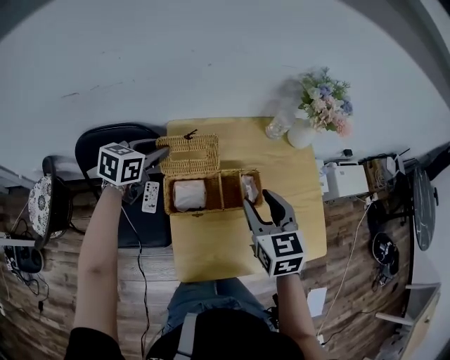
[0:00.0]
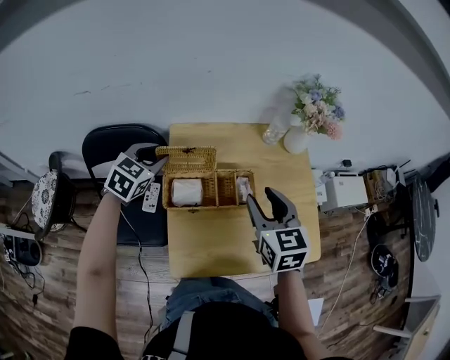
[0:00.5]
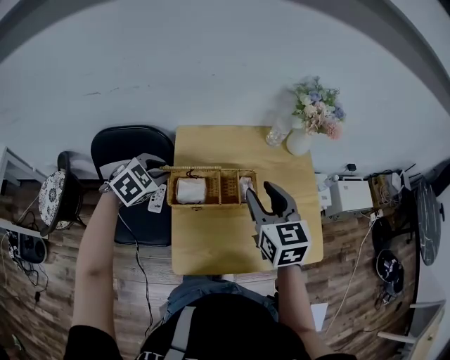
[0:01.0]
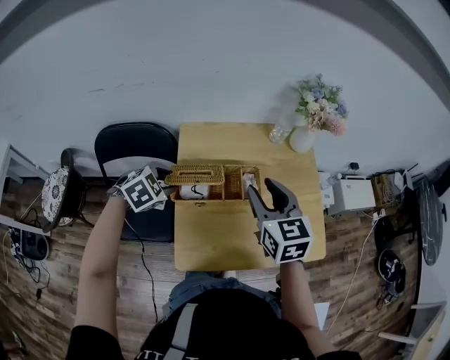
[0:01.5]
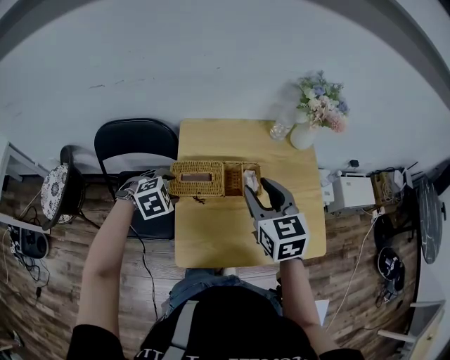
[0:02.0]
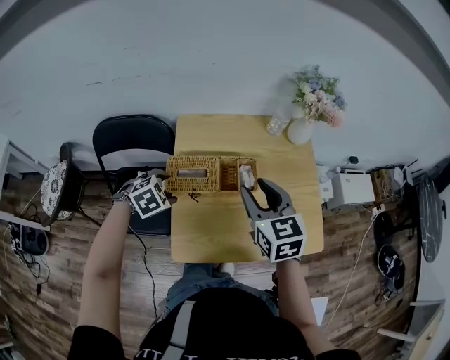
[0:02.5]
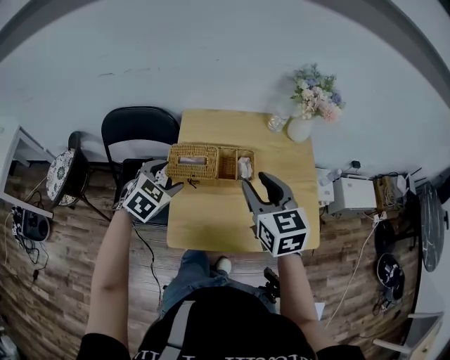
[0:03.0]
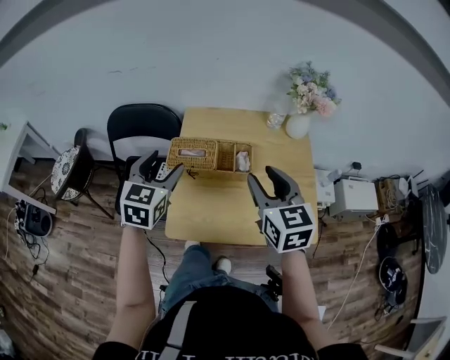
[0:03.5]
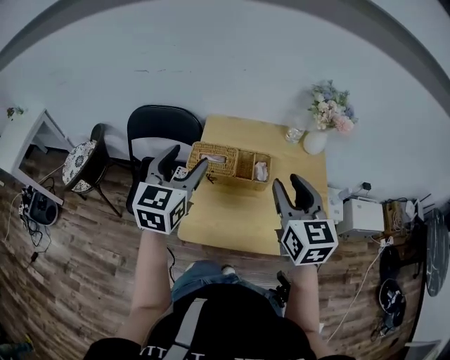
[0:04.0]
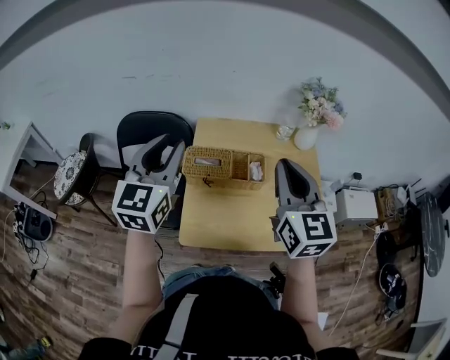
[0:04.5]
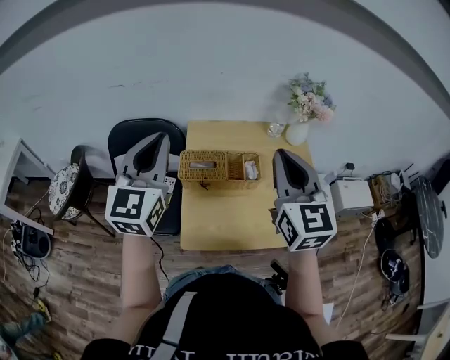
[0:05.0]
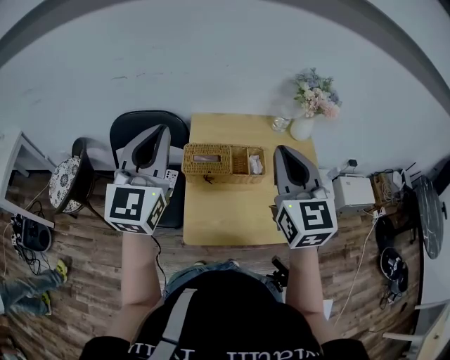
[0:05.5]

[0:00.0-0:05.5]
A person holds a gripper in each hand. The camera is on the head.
0:00.0 to 0:02.0: The left gripper shifts roughly 20 cm backward and downward, and angles its fingers downward, by roughly 30 degrees.
0:02.0 to 0:03.5: The right gripper moves backward and to the right, roughly 10 cm. The left gripper moves upward, roughly 15 cm, and tips its fingers upward by some 50 degrees.
0:03.5 to 0:05.5: The right gripper is displaced upward by roughly 10 cm, and closes. Meanwhile the left gripper heads upward, covering roughly 15 cm, turns by about 30 degrees, and closes its fingers.

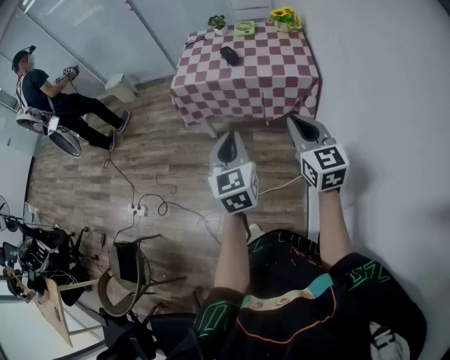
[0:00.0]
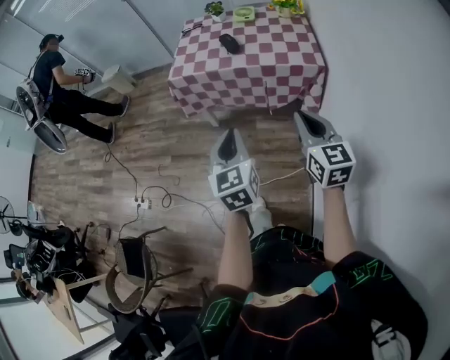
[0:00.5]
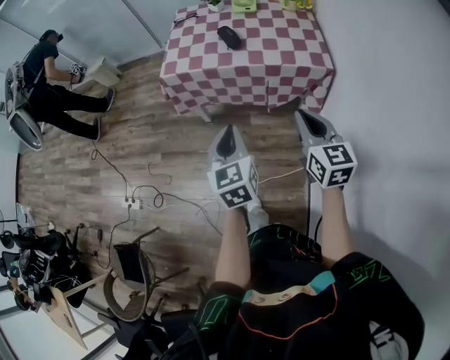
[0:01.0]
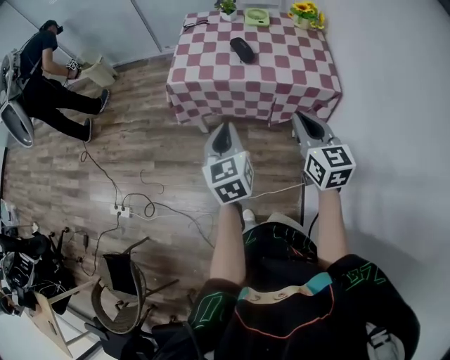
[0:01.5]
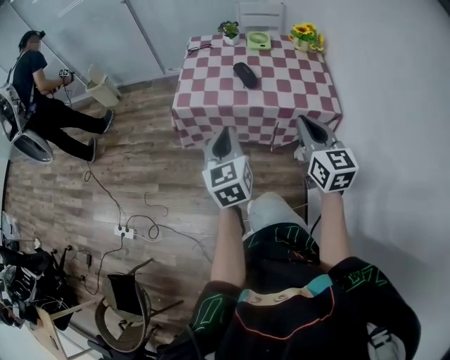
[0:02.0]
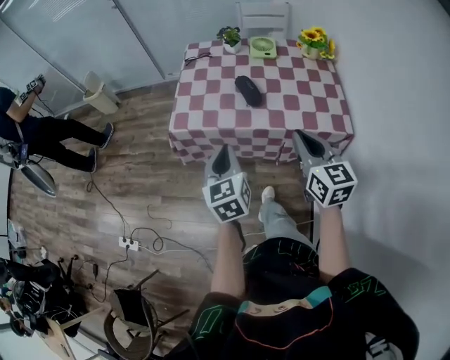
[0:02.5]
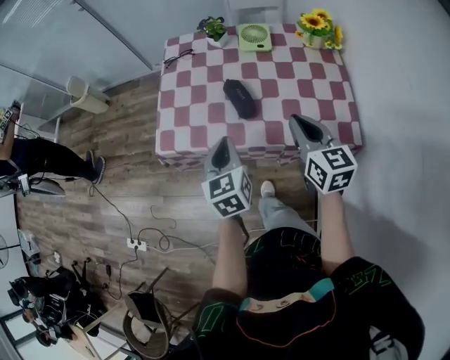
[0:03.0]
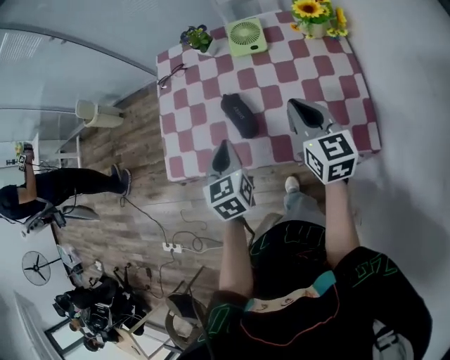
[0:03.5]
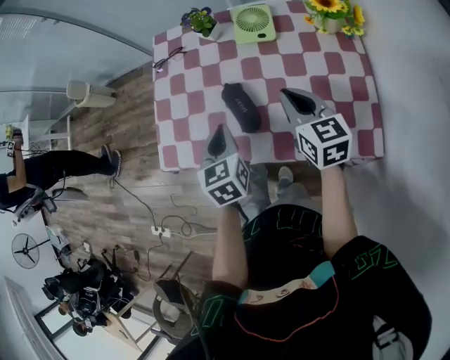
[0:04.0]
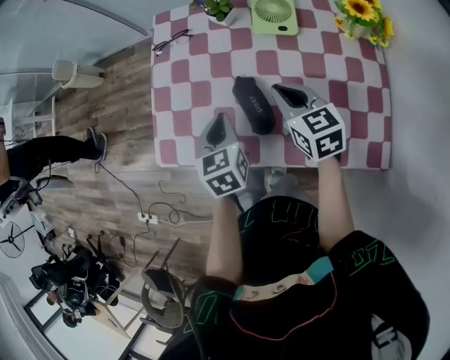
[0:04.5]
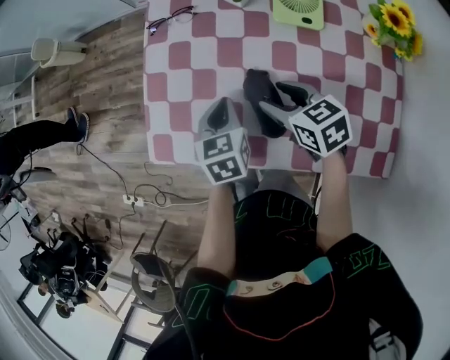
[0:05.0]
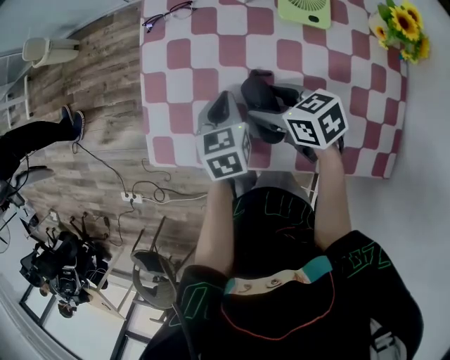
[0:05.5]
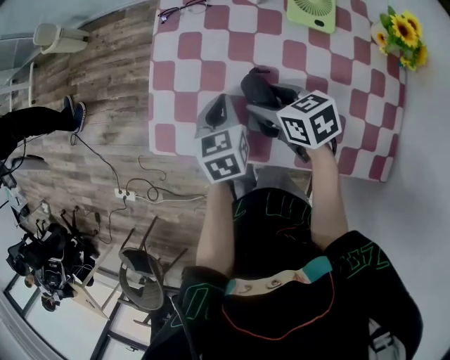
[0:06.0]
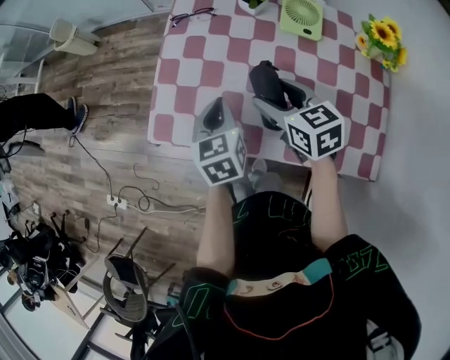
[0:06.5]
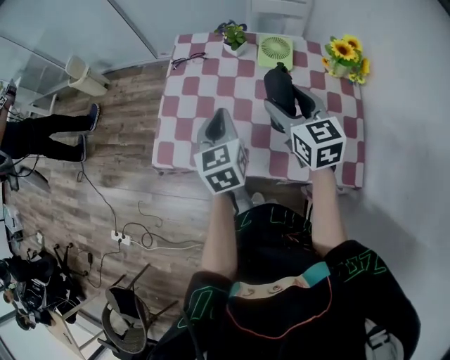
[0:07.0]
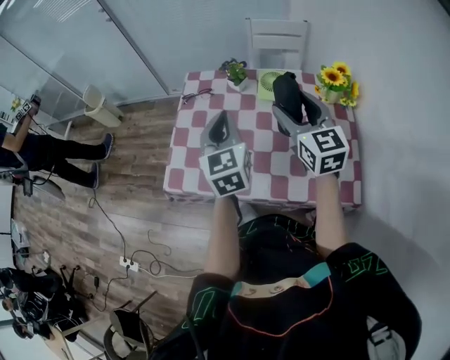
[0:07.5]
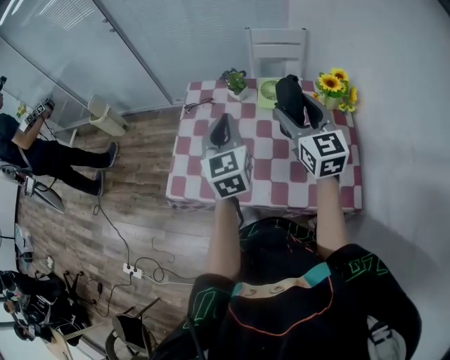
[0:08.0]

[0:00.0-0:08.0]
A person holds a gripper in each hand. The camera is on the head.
0:00.0 to 0:02.0: The grippers both shift forward by some 25 cm.
0:02.0 to 0:04.0: The left gripper goes about 35 cm forward and downward, and turns by roughly 20 degrees. The right gripper moves forward, approximately 40 cm.
0:04.0 to 0:06.0: The right gripper is displaced to the left, downward and forward by about 20 cm, rotates about 40 degrees, and opens up. The left gripper shifts approximately 10 cm forward and downward.
0:06.0 to 0:08.0: The right gripper shifts some 30 cm upward and to the right, and tilts its fingers approximately 40 degrees upward; the left gripper is displaced upward by roughly 25 cm, and tips its fingers upward by some 30 degrees.

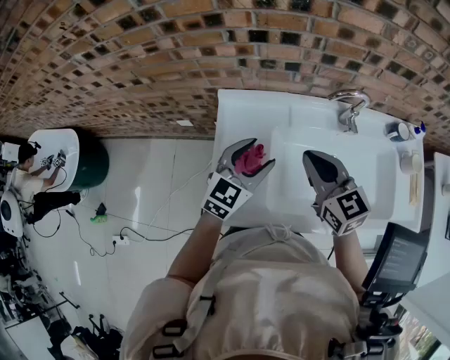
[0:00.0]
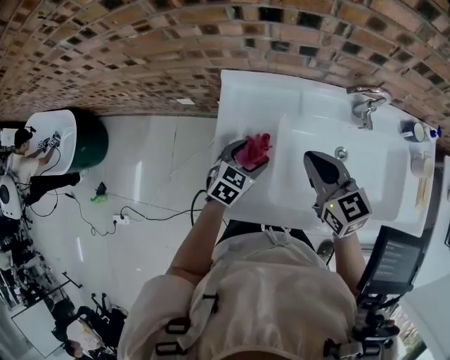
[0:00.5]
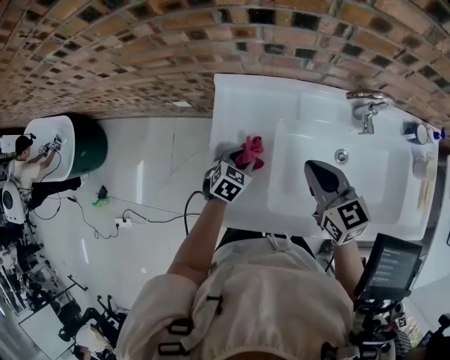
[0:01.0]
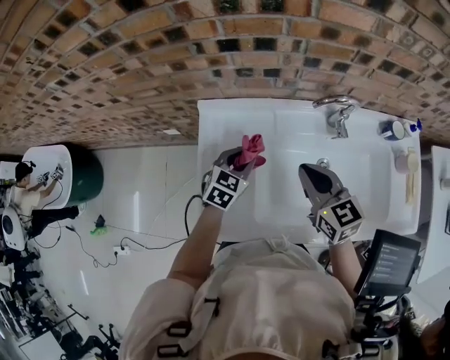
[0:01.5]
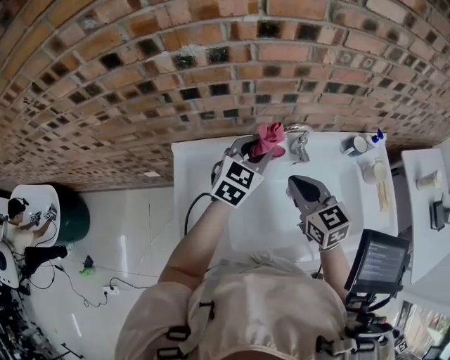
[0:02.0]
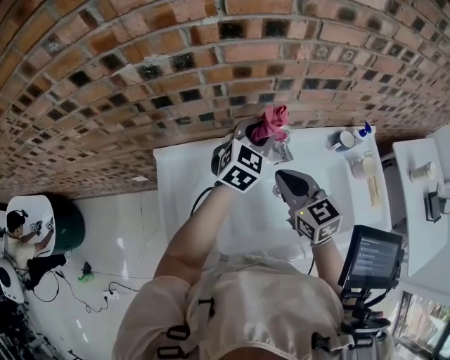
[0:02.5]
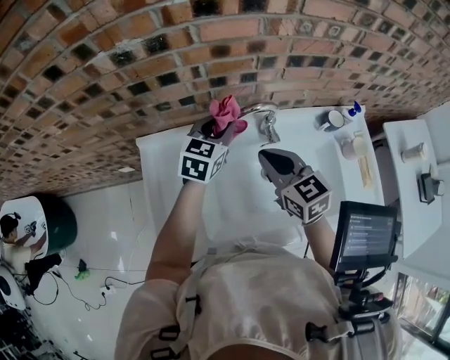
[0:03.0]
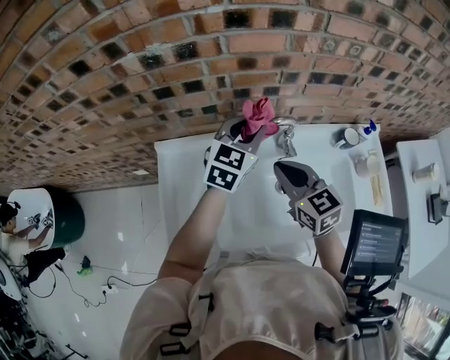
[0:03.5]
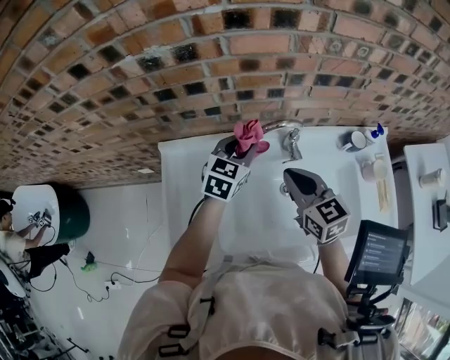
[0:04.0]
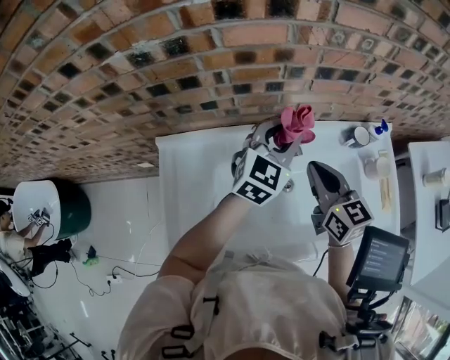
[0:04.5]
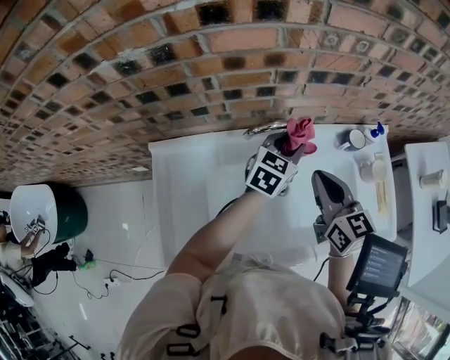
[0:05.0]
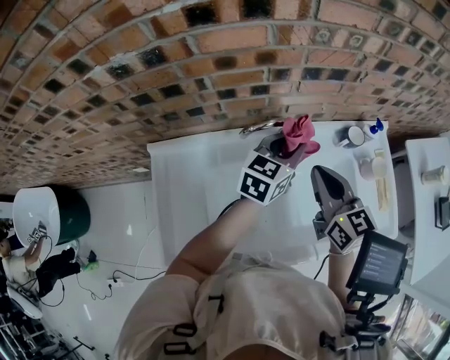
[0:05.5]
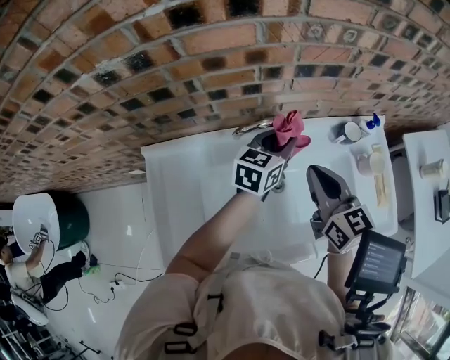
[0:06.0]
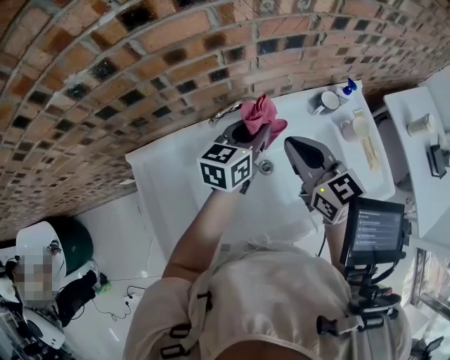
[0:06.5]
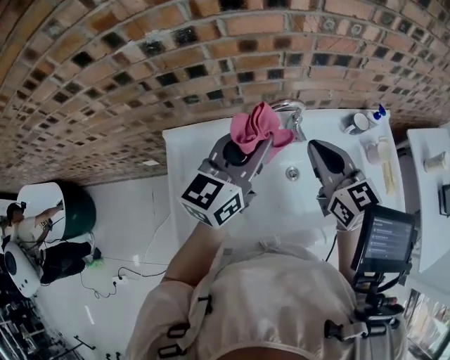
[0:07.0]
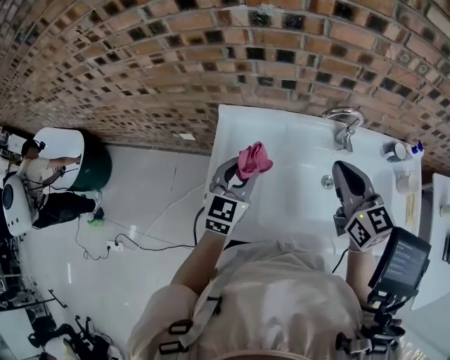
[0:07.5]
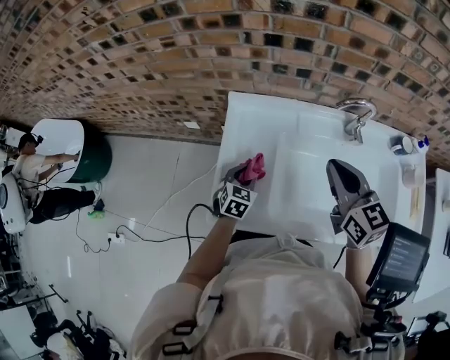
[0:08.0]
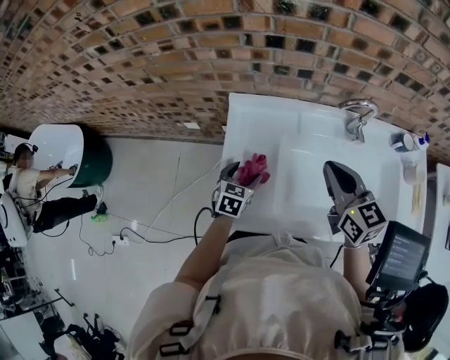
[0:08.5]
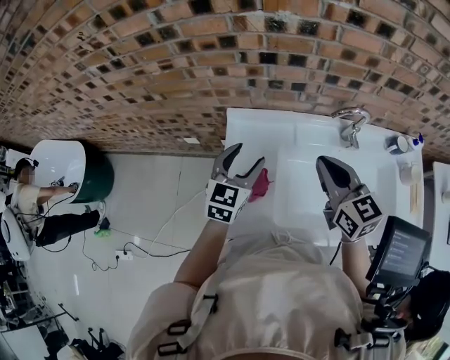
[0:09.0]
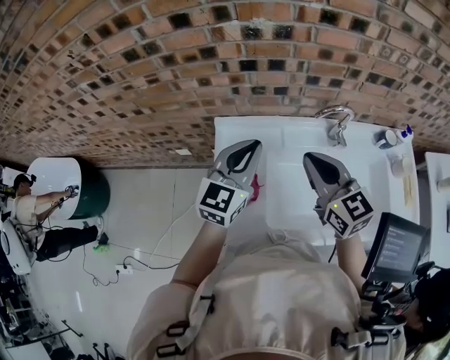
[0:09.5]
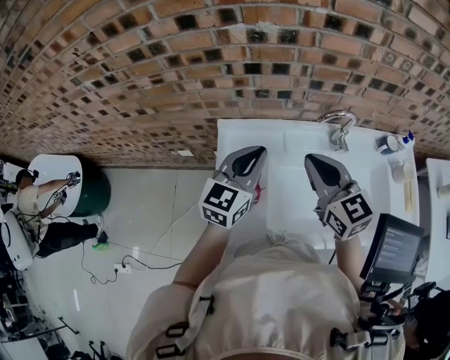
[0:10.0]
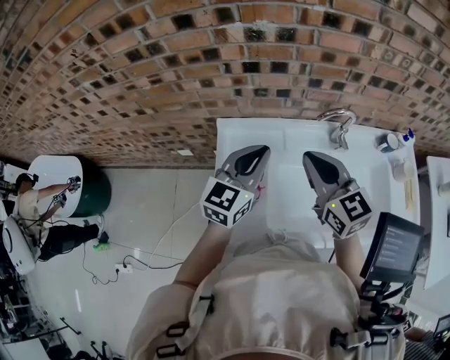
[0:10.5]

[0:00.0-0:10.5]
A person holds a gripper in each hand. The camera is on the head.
0:00.0 to 0:02.0: The left gripper heads to the right and forward, covering roughly 20 cm, moves some 20 cm downward and comes back, and closes. Meanwhile the right gripper shifts some 15 cm to the right and forward.
0:02.0 to 0:04.0: The right gripper shifts by roughly 5 cm. Meanwhile the left gripper moves up and down over some 10 cm, changing direction 2 times.
0:04.0 to 0:06.5: The right gripper shifts roughly 10 cm to the right. Meanwhile the left gripper heads to the right, covering approximately 15 cm, and rotates about 30 degrees.
0:06.5 to 0:08.5: The right gripper changes place by roughly 25 cm, while the left gripper moves approximately 50 cm, swivels some 40 degrees, and opens its fingers.
0:08.5 to 0:10.5: The left gripper shifts roughly 25 cm upward, angles its fingers upward, by about 40 degrees, and closes up; the right gripper travels upward by roughly 5 cm.

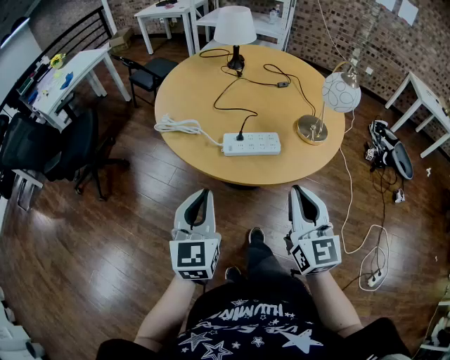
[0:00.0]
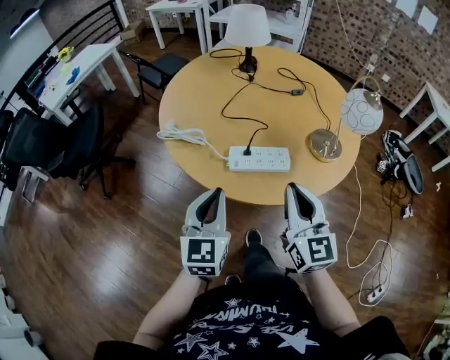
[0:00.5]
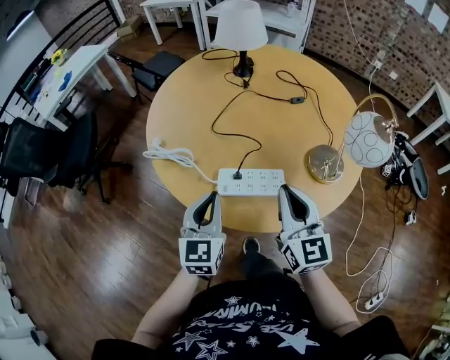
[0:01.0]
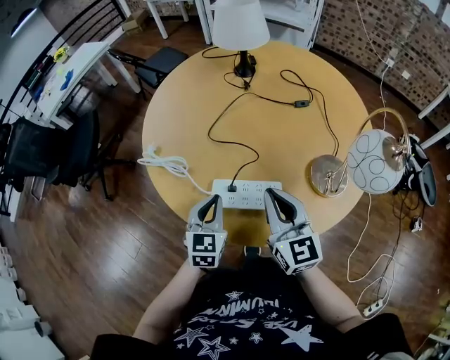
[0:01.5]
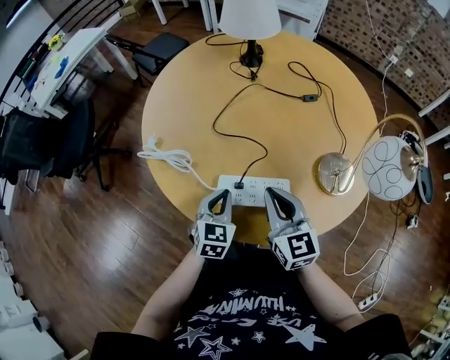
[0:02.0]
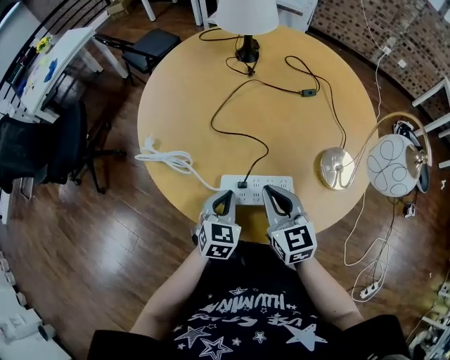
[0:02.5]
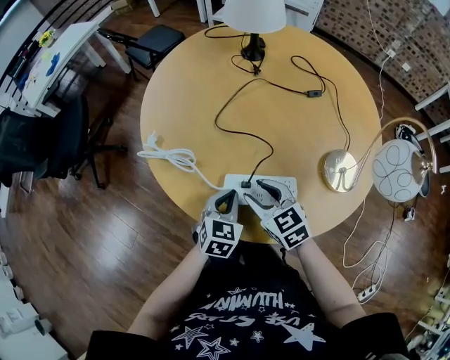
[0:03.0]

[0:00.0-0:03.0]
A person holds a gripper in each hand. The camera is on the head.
0:00.0 to 0:01.5: The right gripper goes approximately 20 cm forward. The left gripper heads forward and downward, covering about 25 cm.
0:01.5 to 0:03.0: The left gripper shifts approximately 5 cm downward, while the right gripper shifts about 15 cm downward and to the left, turns by some 30 degrees, and opens up.
